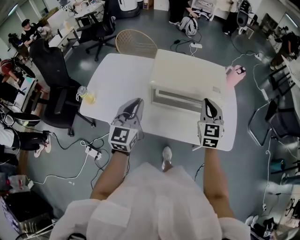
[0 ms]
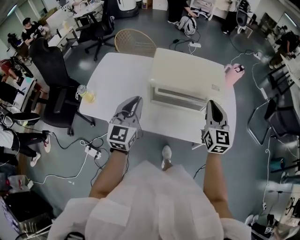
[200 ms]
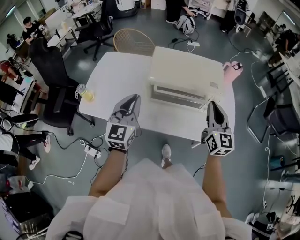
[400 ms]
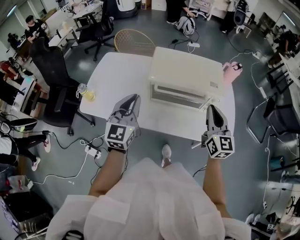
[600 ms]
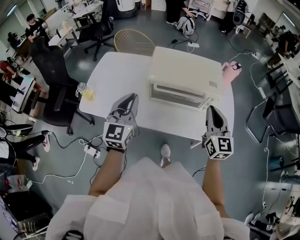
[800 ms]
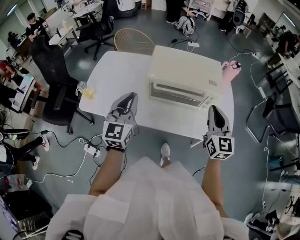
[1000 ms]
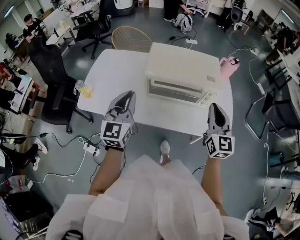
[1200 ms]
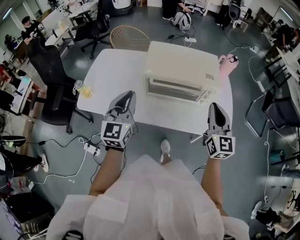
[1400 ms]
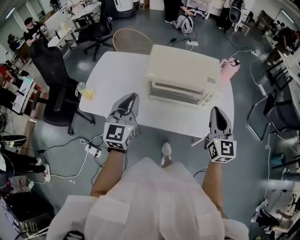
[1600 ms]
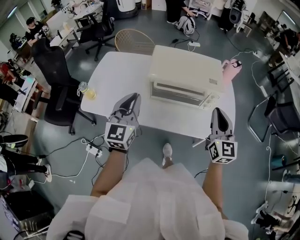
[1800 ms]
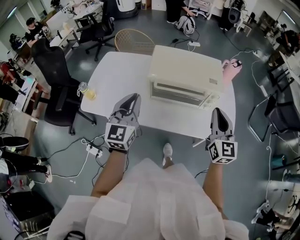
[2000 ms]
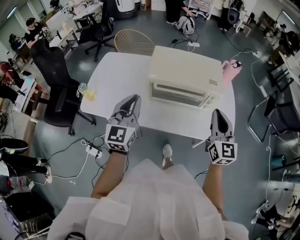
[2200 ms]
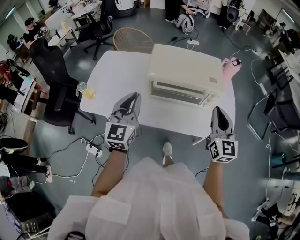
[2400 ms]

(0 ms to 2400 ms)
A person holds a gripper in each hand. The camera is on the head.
0 ms - 1200 ms: The right gripper moves backward, roughly 10 cm. The left gripper moves some 5 cm.
1200 ms - 2400 ms: The grippers move only a little.

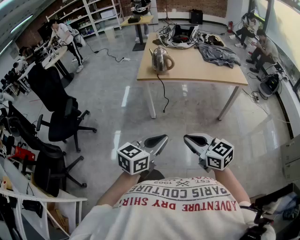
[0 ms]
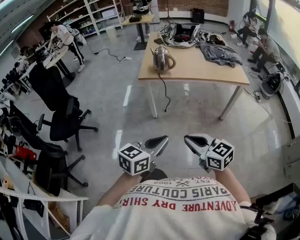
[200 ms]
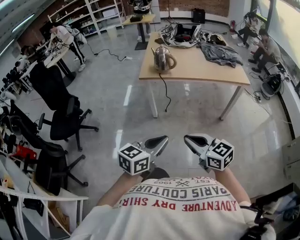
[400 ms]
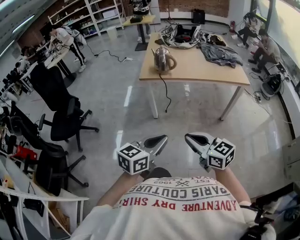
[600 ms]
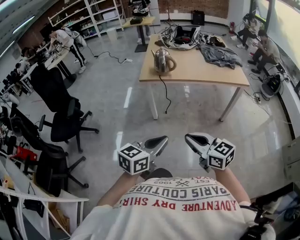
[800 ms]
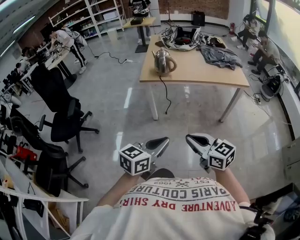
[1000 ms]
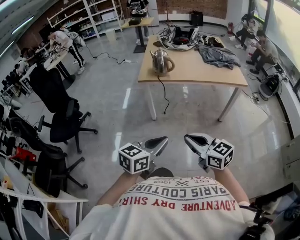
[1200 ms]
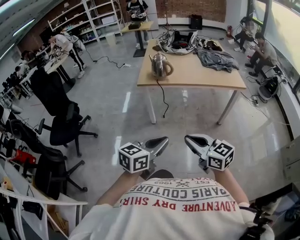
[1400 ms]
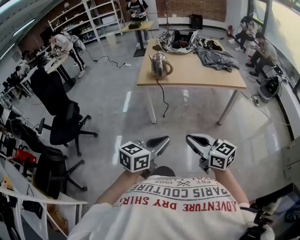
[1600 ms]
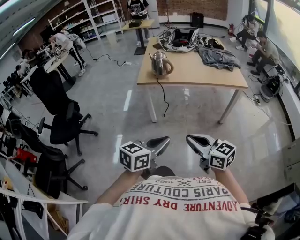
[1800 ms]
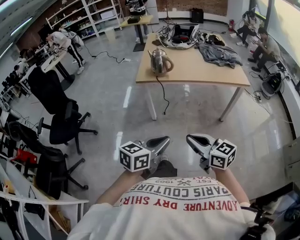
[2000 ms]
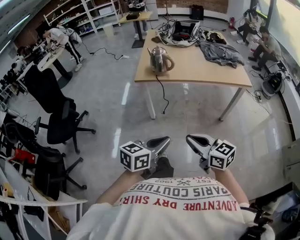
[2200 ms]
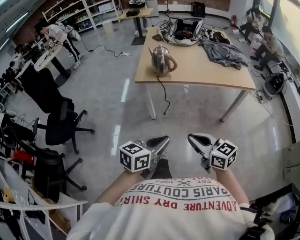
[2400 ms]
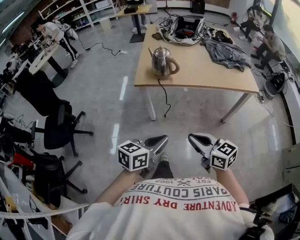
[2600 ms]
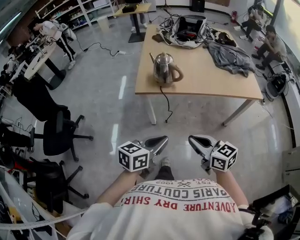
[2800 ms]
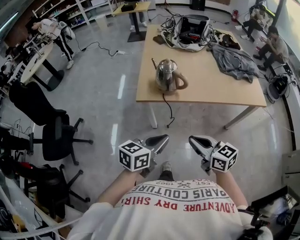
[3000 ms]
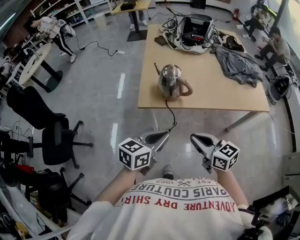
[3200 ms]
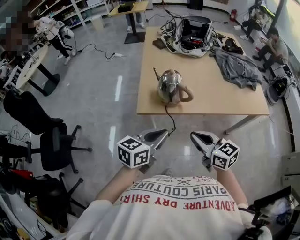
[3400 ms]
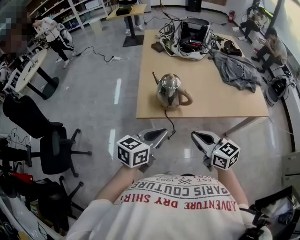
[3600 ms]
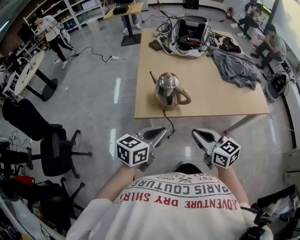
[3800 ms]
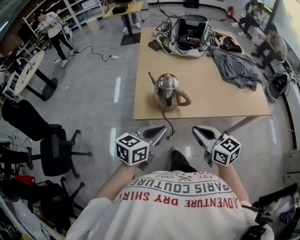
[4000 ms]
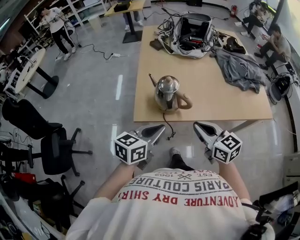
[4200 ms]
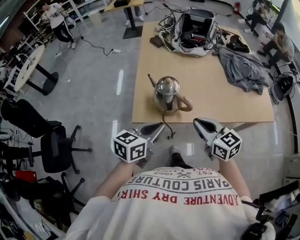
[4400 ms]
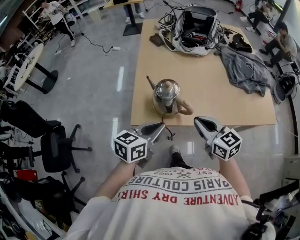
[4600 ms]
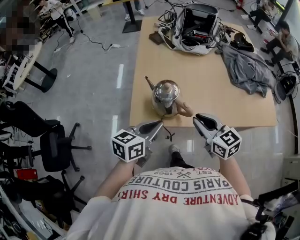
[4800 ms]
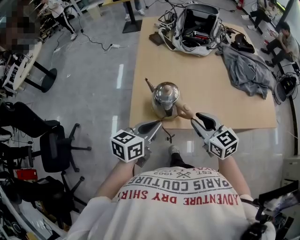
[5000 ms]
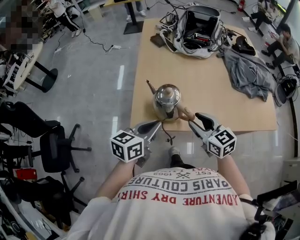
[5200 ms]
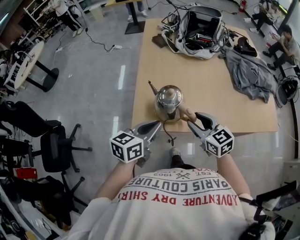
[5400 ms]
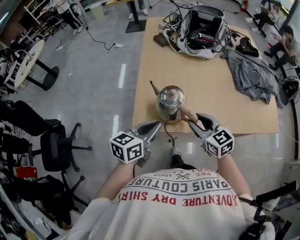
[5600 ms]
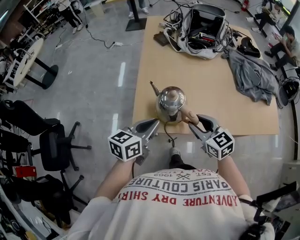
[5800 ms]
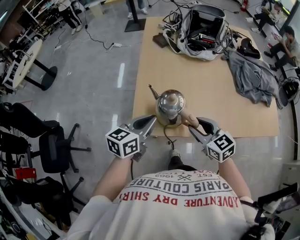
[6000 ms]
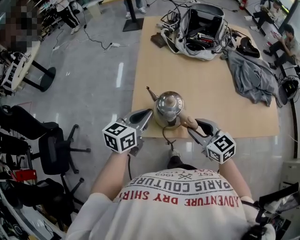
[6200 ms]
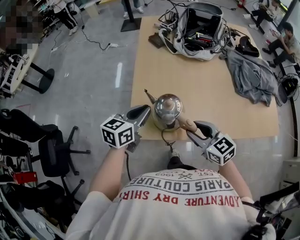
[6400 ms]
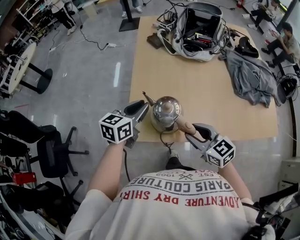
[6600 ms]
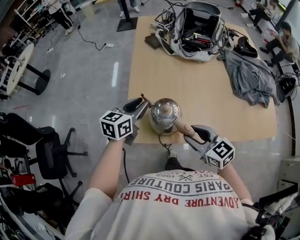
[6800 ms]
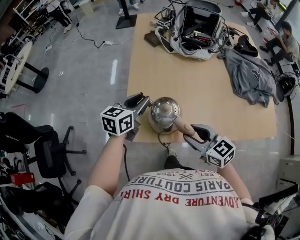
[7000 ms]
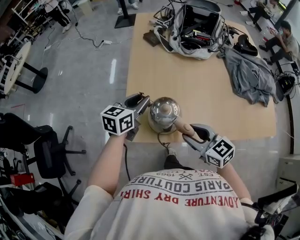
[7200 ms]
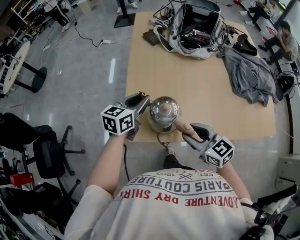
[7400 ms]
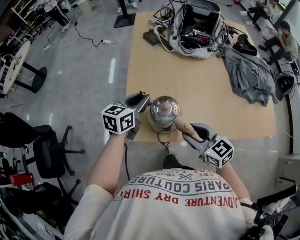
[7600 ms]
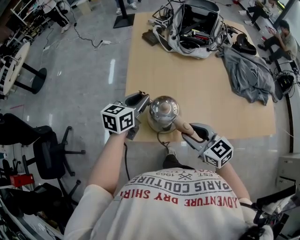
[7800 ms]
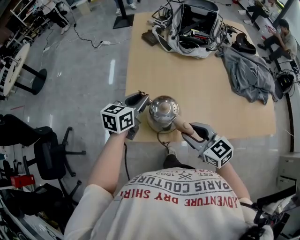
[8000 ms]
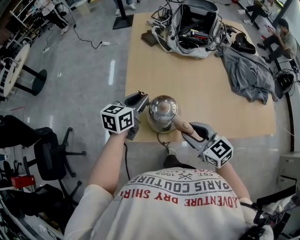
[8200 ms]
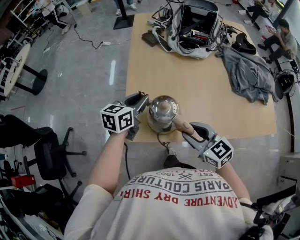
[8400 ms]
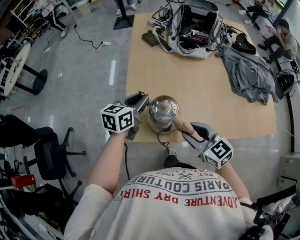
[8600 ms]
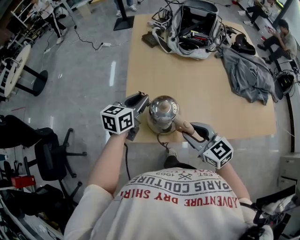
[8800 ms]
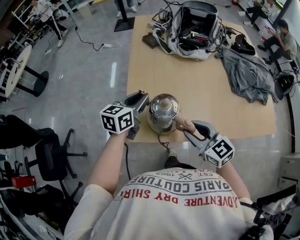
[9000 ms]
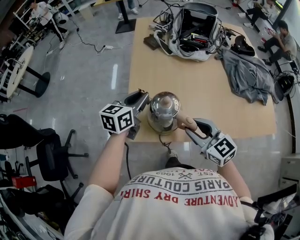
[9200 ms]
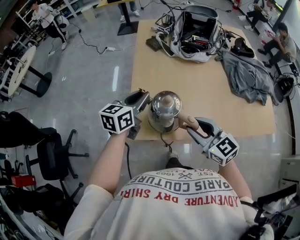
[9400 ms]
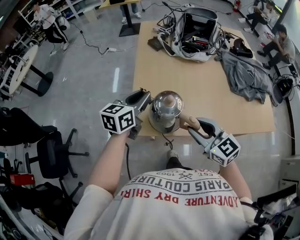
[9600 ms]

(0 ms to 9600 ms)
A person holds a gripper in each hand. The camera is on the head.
0 ms - 1600 ms: The grippers move only a little.
1600 ms - 3200 ms: The two grippers go approximately 35 cm forward.
3200 ms - 4800 ms: Both grippers travel together forward, approximately 20 cm.
4800 ms - 6400 ms: The right gripper shifts by roughly 5 cm, and opens up. Meanwhile the left gripper goes some 15 cm forward and to the left.
6400 ms - 8000 ms: The left gripper shifts some 5 cm forward.
8000 ms - 9600 ms: Both grippers move upward, roughly 5 cm.

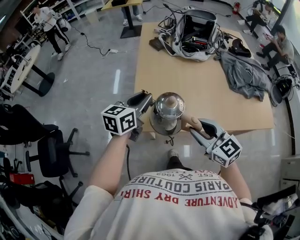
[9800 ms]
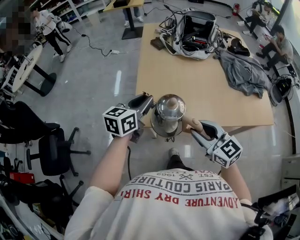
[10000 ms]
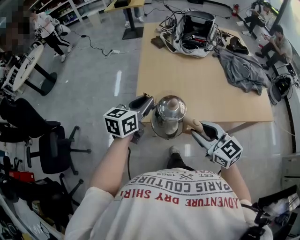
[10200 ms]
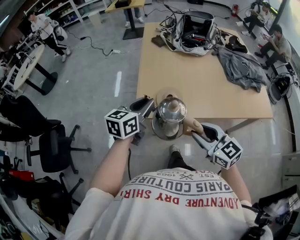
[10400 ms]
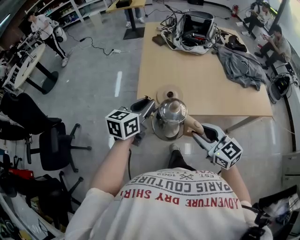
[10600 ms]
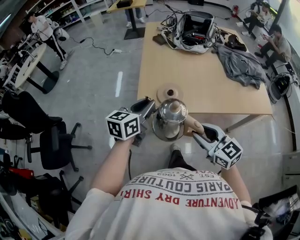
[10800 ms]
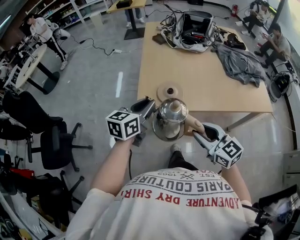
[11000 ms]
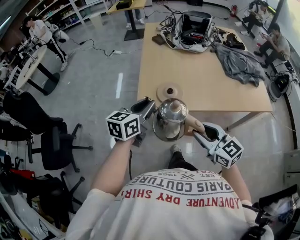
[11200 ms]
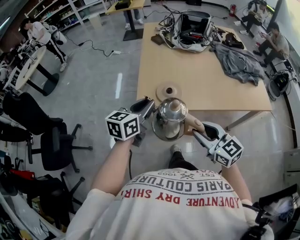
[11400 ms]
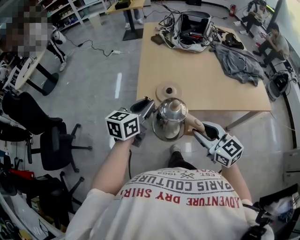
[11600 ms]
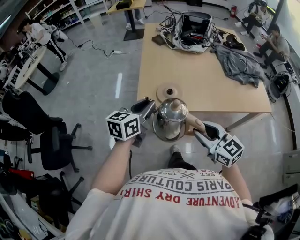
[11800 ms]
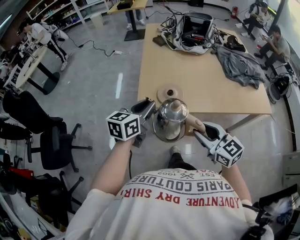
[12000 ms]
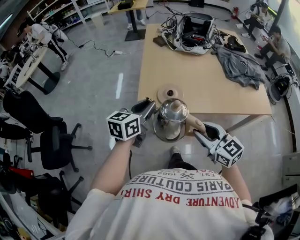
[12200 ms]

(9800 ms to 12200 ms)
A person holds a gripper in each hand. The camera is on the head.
9800 ms - 11000 ms: Both grippers travel together backward, some 15 cm.
11000 ms - 12200 ms: Both grippers stay put.

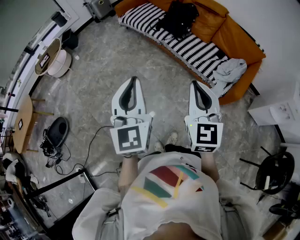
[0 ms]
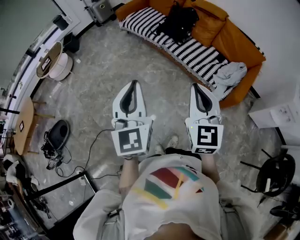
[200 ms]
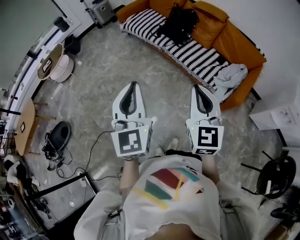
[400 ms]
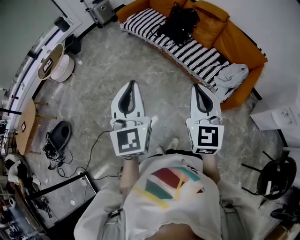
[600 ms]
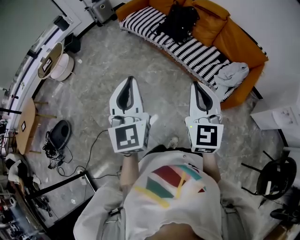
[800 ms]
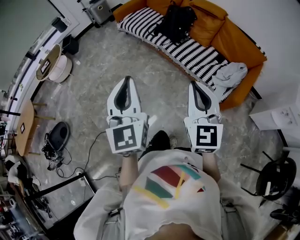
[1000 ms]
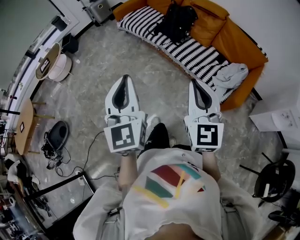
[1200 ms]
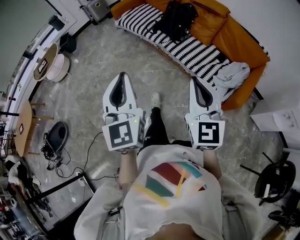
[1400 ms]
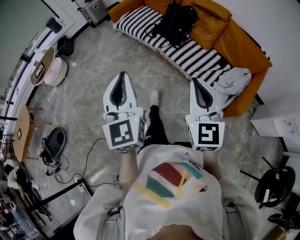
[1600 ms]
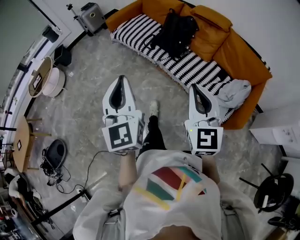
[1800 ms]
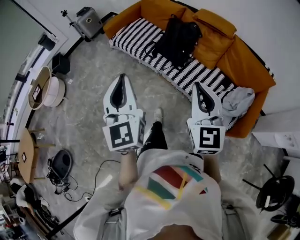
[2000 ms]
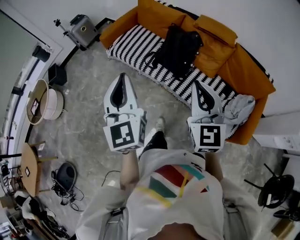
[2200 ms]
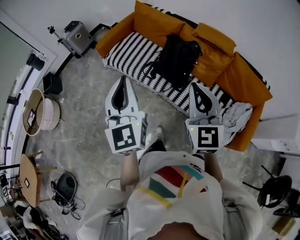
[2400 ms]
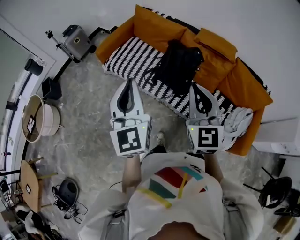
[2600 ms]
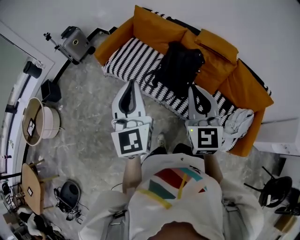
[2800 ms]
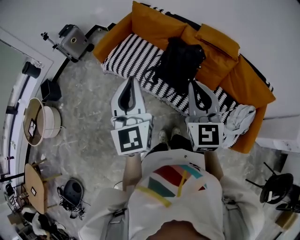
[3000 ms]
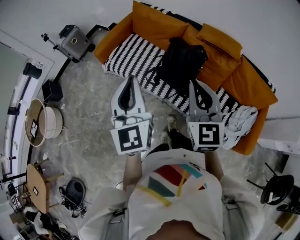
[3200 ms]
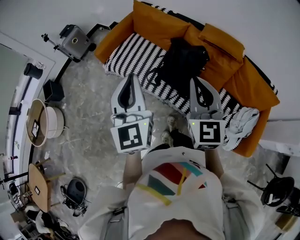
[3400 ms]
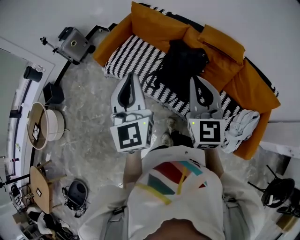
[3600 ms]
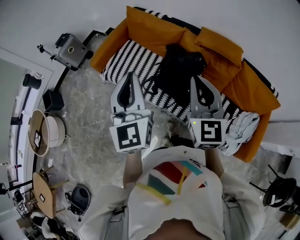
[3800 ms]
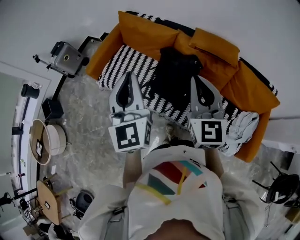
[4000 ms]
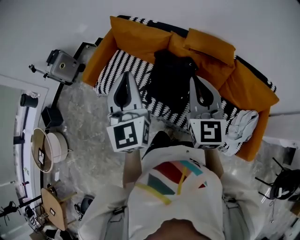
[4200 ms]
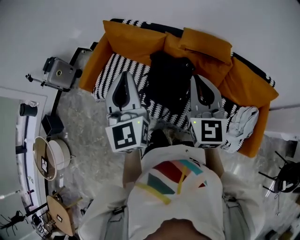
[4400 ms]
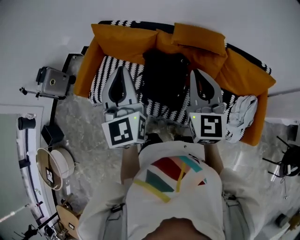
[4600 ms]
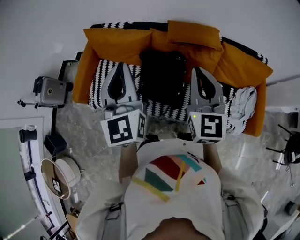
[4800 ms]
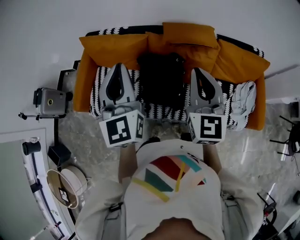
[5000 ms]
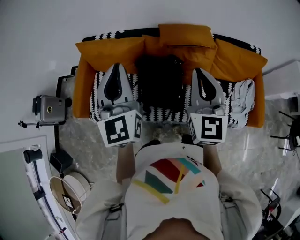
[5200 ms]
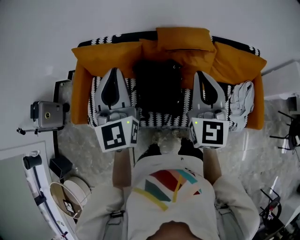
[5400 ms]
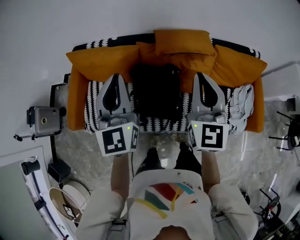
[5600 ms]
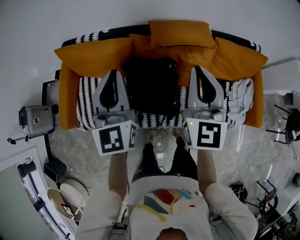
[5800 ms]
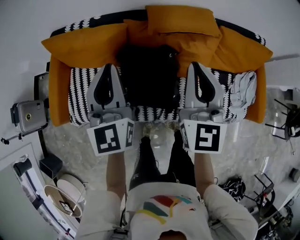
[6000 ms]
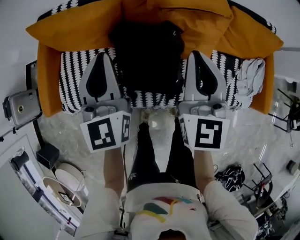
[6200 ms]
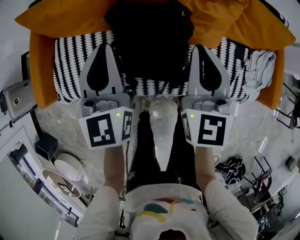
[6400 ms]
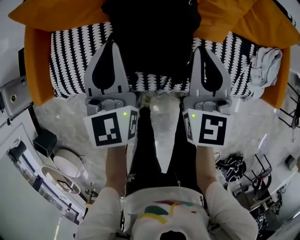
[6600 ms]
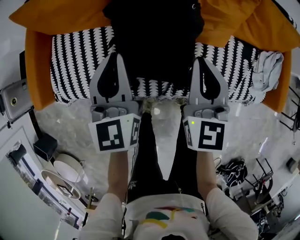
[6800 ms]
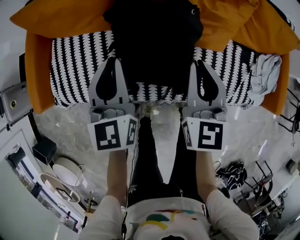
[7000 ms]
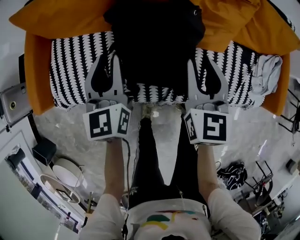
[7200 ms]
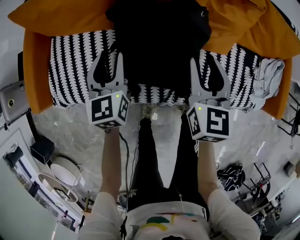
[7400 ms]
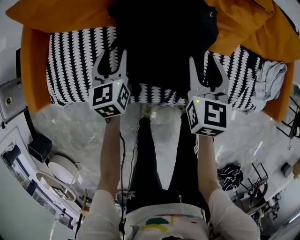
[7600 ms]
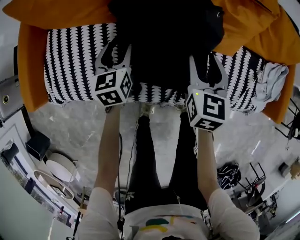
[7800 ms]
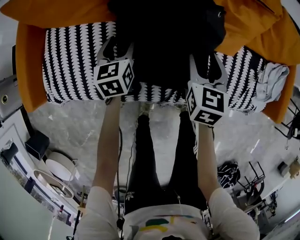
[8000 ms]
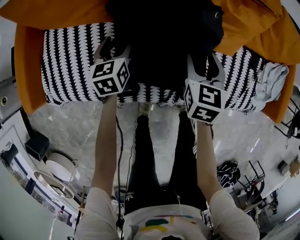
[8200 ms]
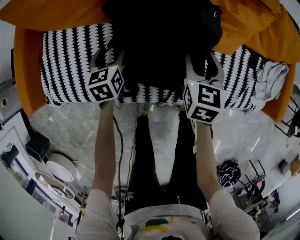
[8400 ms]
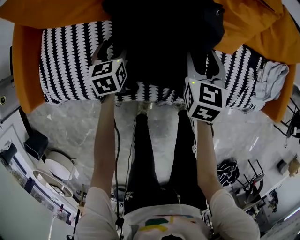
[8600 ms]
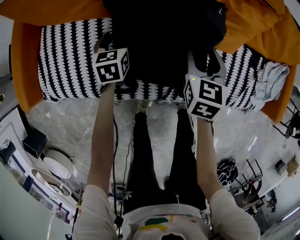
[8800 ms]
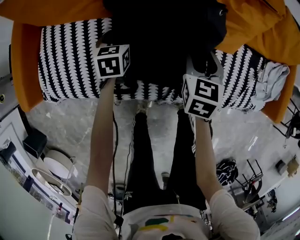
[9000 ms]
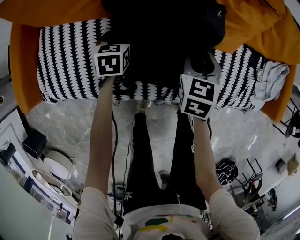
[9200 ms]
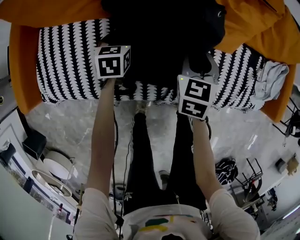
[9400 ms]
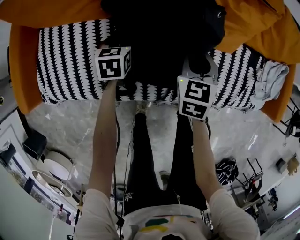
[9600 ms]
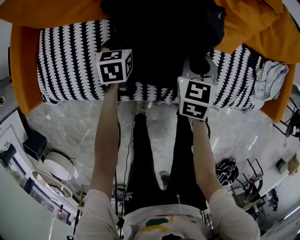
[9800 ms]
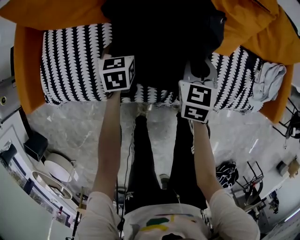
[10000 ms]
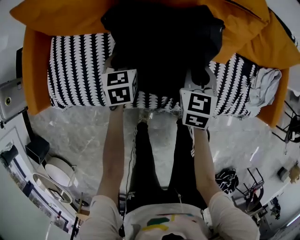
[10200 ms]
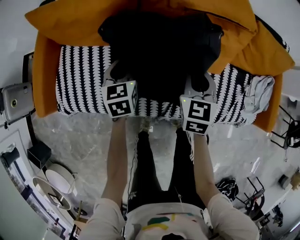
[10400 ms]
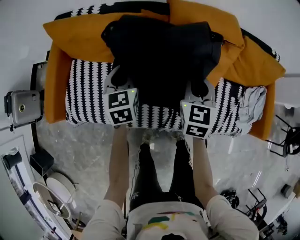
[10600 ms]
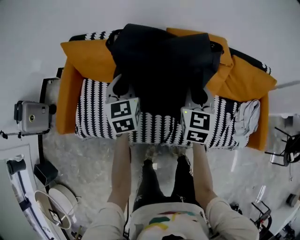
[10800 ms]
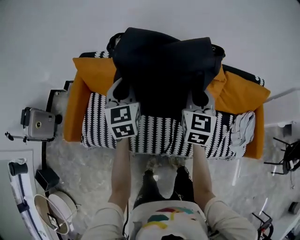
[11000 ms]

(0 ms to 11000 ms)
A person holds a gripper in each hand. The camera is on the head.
0 ms - 1600 ms: The right gripper moves forward and to the right, about 15 cm. The left gripper moves forward, about 15 cm.
1600 ms - 3200 ms: Both grippers are carried forward, about 50 cm.
3200 ms - 4800 ms: Both grippers move forward and to the right, some 25 cm. The right gripper turns by about 30 degrees, while the left gripper rotates about 20 degrees.
4800 ms - 6200 ms: Both grippers move downward and forward, roughly 20 cm.
6200 ms - 7800 ms: The two grippers go approximately 30 cm downward. The left gripper changes its angle by some 30 degrees, and opens its fingers; the right gripper swivels about 30 degrees, and opens up.
7800 ms - 9400 ms: The two grippers go roughly 5 cm downward. The left gripper changes its angle by about 20 degrees.
9400 ms - 11000 ms: Both grippers travel together upward, some 40 cm. The right gripper angles its fingers upward, by approximately 30 degrees. Meanwhile the left gripper tips its fingers upward by approximately 40 degrees, and closes up.
